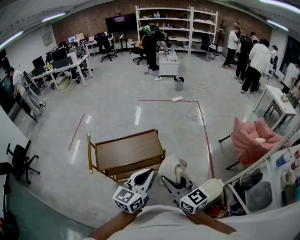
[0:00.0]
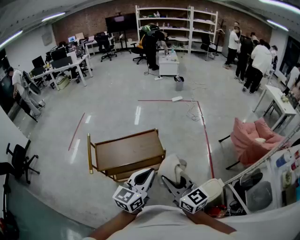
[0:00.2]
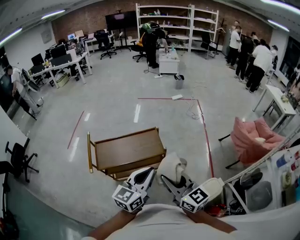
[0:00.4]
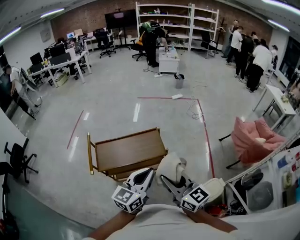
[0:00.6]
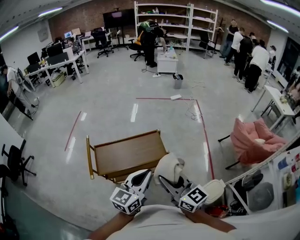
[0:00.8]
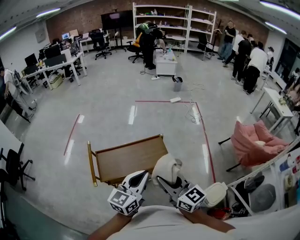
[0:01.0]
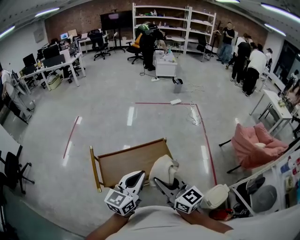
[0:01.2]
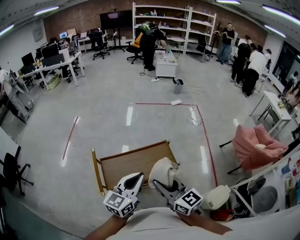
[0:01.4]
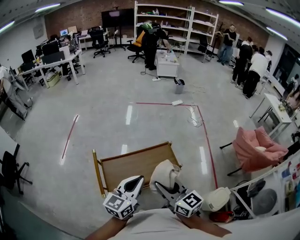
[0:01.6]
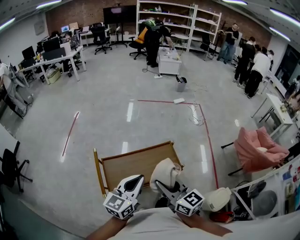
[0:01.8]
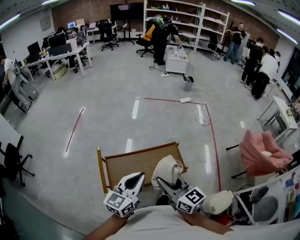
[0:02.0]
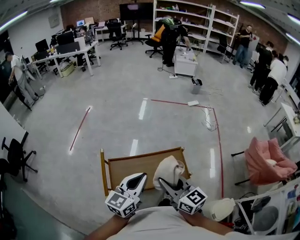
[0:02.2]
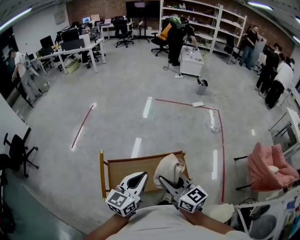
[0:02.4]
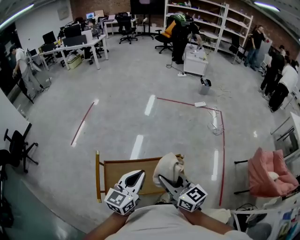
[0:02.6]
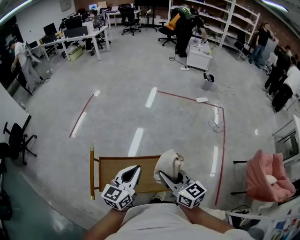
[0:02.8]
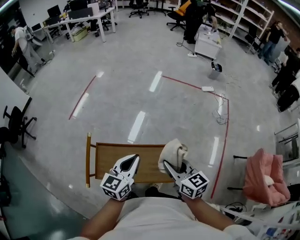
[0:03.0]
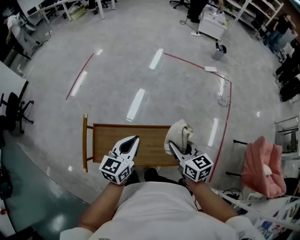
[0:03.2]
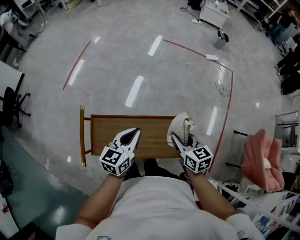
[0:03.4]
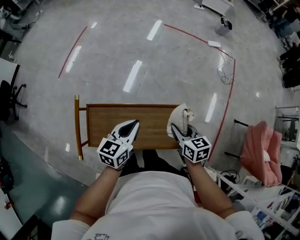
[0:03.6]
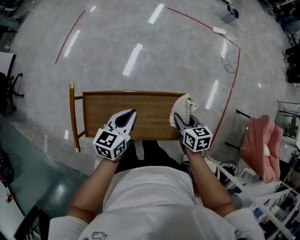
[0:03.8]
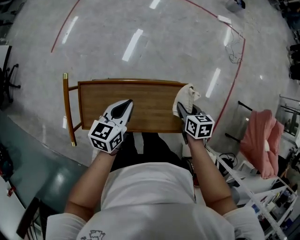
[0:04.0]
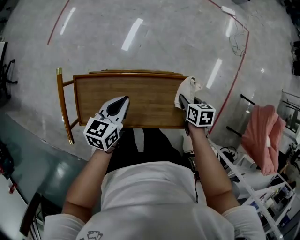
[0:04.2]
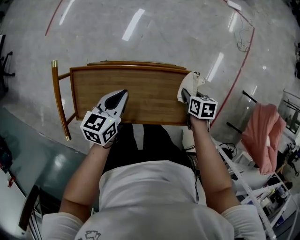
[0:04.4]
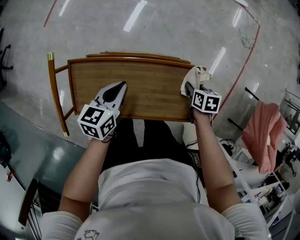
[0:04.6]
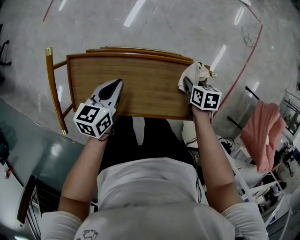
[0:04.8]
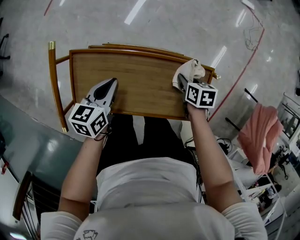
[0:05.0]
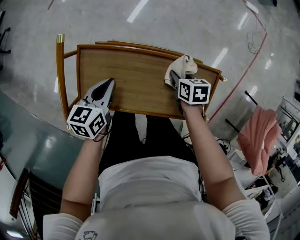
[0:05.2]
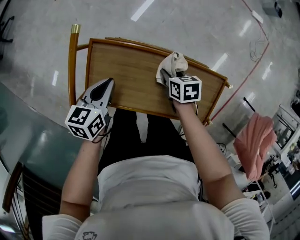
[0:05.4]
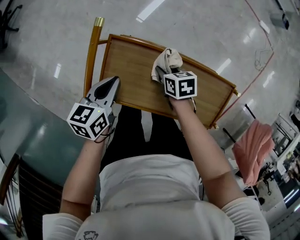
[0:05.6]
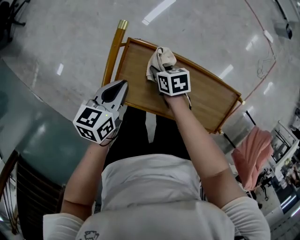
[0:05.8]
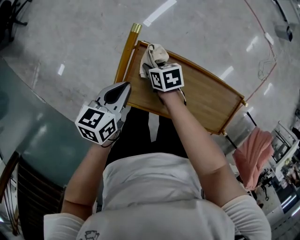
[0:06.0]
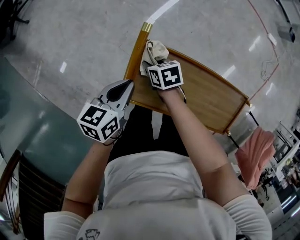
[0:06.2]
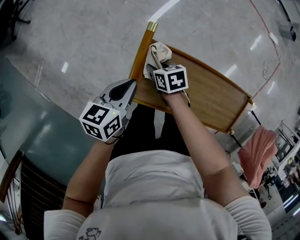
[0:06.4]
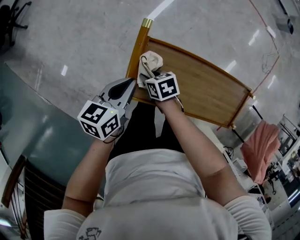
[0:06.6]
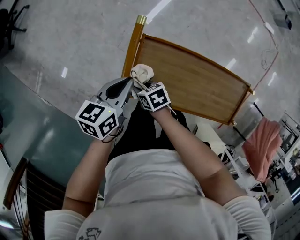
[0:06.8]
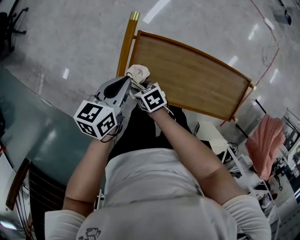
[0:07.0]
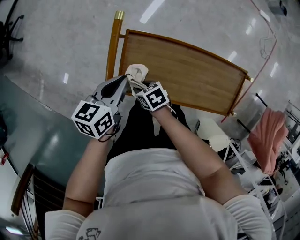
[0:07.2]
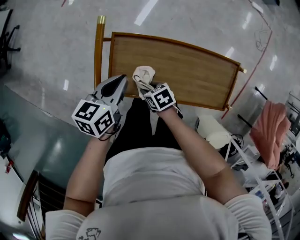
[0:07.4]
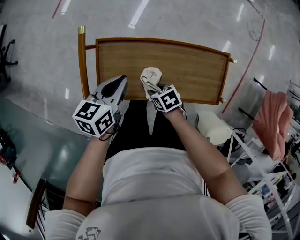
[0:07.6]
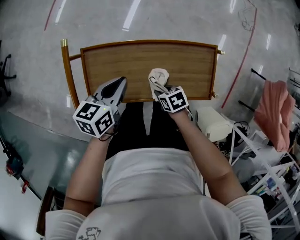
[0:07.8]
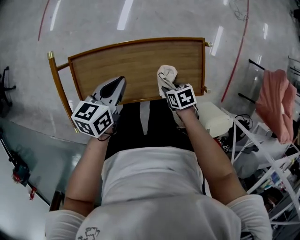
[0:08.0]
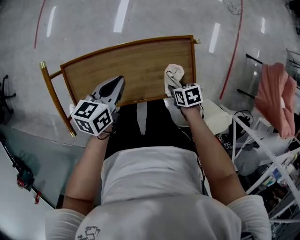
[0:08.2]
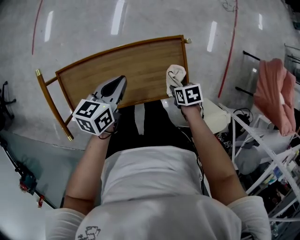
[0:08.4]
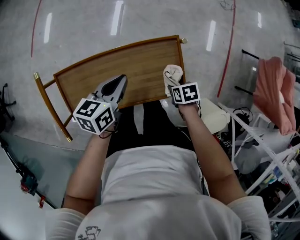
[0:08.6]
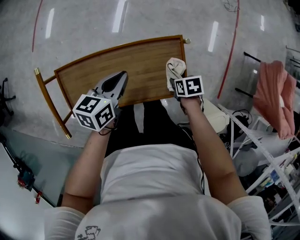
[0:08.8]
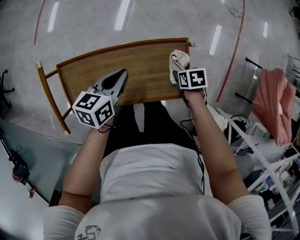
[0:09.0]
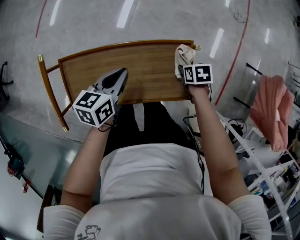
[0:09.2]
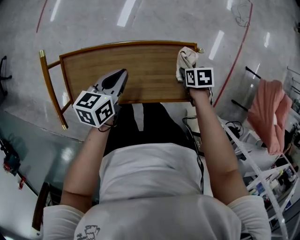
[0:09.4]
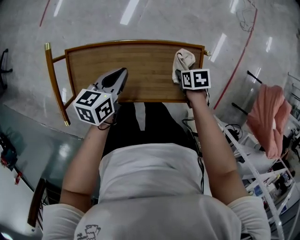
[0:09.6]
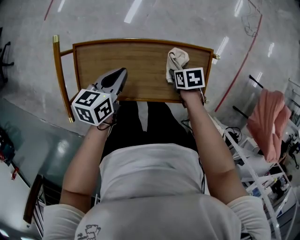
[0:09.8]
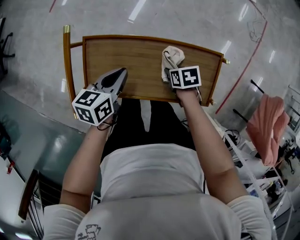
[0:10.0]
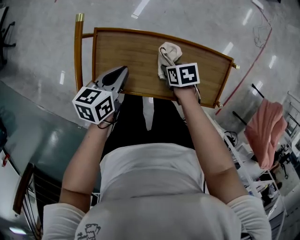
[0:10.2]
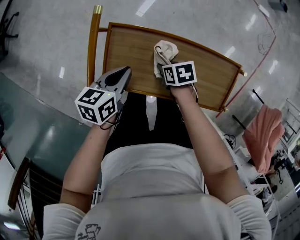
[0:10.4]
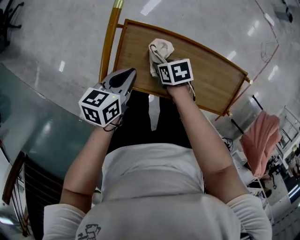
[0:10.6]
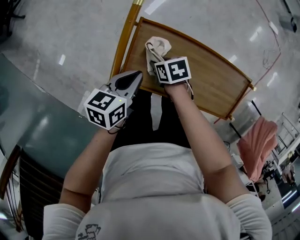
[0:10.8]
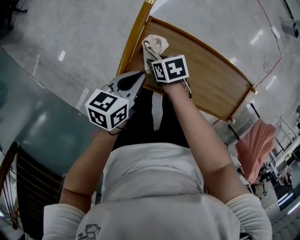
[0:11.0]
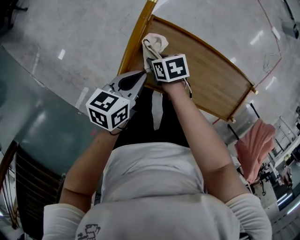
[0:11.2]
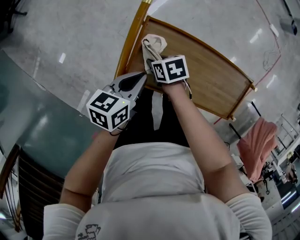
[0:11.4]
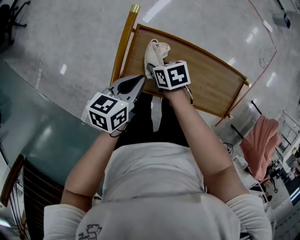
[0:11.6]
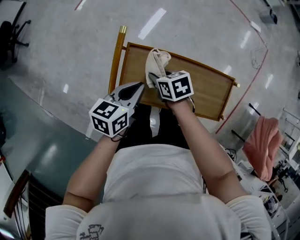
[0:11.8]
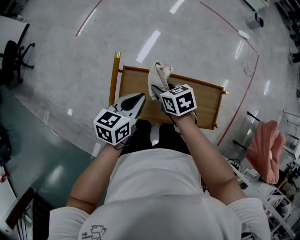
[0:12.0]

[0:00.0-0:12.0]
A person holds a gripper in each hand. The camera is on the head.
0.0 to 1.6 s: Both grippers travel together to the left and forward, some 30 cm.
1.6 to 3.0 s: The left gripper is displaced forward by some 25 cm, and swivels some 20 degrees; the right gripper heads forward and to the right, covering some 30 cm.
3.0 to 4.4 s: Both grippers move downward, some 30 cm. The right gripper tips its fingers downward by roughly 50 degrees; the left gripper turns by about 30 degrees.
4.4 to 6.0 s: The right gripper ends up roughly 50 cm from where it was, and changes its angle by roughly 40 degrees; the left gripper moves roughly 30 cm.
6.0 to 7.6 s: The left gripper shifts by about 15 cm, while the right gripper ends up roughly 25 cm from where it was.
7.6 to 9.0 s: The left gripper moves some 25 cm; the right gripper shifts by some 35 cm, and turns by some 30 degrees.
9.0 to 10.4 s: The right gripper changes place by roughly 35 cm, and changes its angle by approximately 20 degrees. The left gripper changes place by about 25 cm.
10.4 to 12.0 s: Both grippers move upward, about 20 cm. The right gripper turns by roughly 20 degrees.

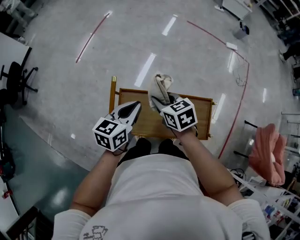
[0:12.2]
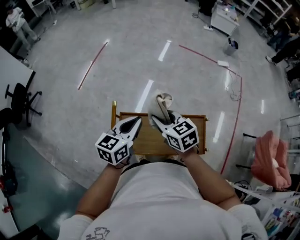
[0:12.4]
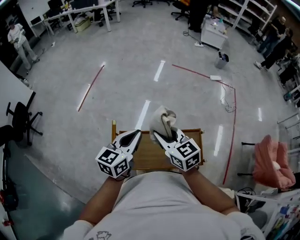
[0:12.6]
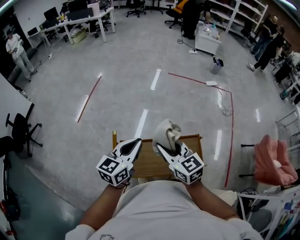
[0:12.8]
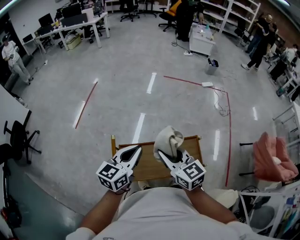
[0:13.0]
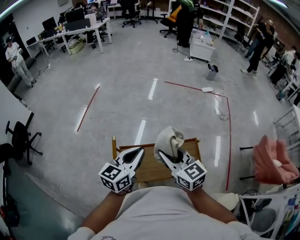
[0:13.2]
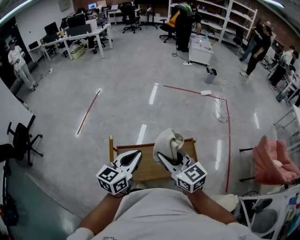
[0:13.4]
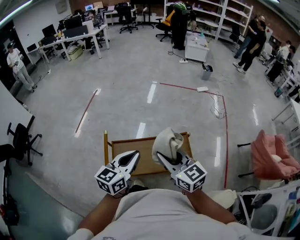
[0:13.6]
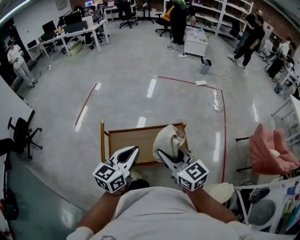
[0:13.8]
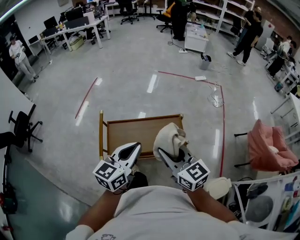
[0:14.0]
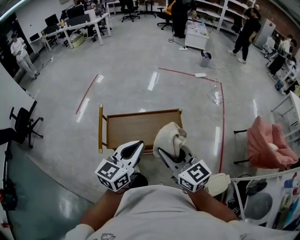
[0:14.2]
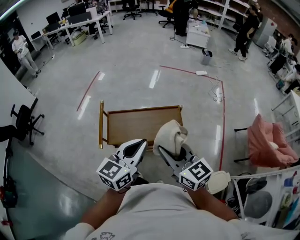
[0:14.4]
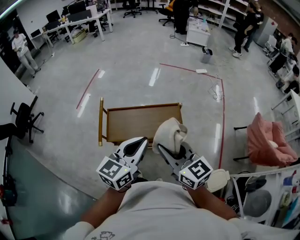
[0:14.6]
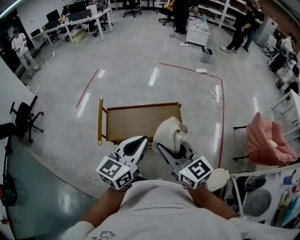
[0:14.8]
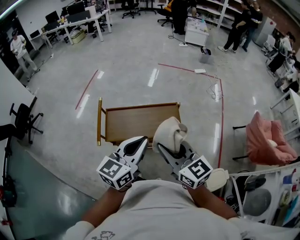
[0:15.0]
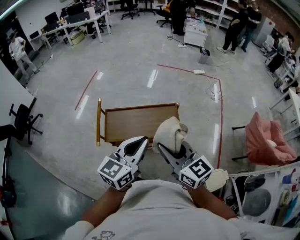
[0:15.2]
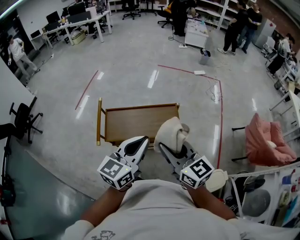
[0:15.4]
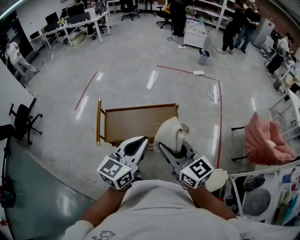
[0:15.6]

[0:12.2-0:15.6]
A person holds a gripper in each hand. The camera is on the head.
12.2 to 13.8 s: The two grippers go approximately 30 cm backward, upward and to the right. The right gripper angles its fingers upward, by approximately 30 degrees; the left gripper swivels some 20 degrees.
13.8 to 15.6 s: The left gripper travels backward and to the right by approximately 15 cm; the right gripper moves backward, approximately 15 cm.

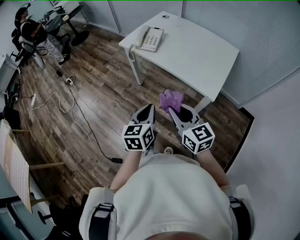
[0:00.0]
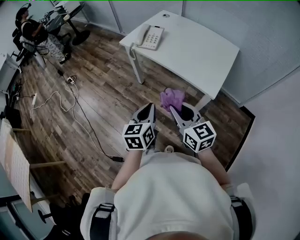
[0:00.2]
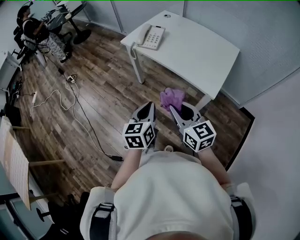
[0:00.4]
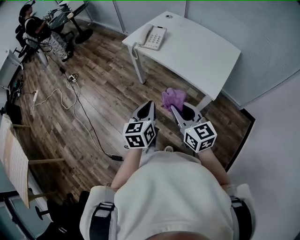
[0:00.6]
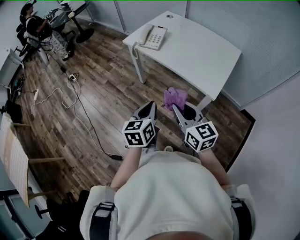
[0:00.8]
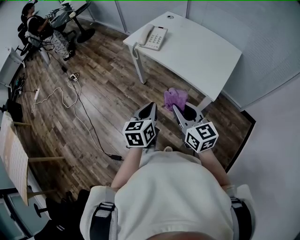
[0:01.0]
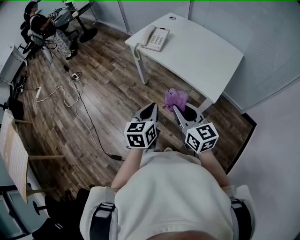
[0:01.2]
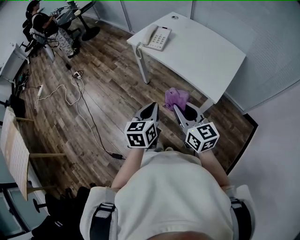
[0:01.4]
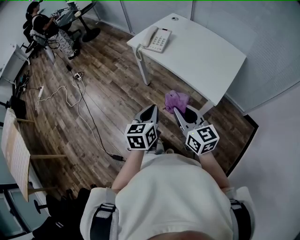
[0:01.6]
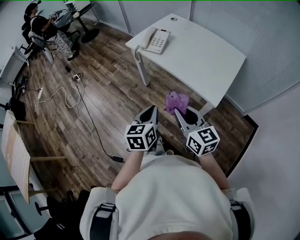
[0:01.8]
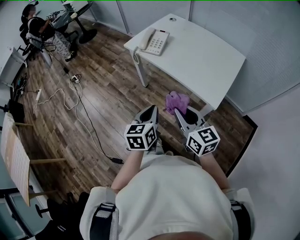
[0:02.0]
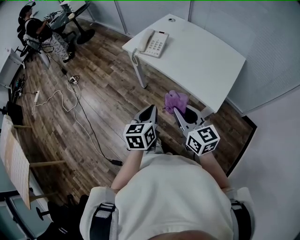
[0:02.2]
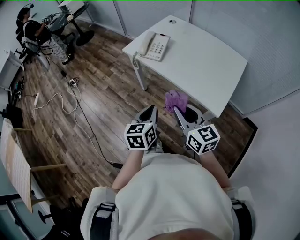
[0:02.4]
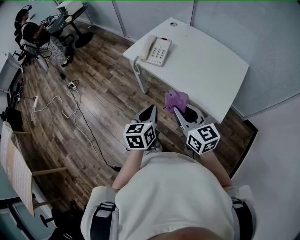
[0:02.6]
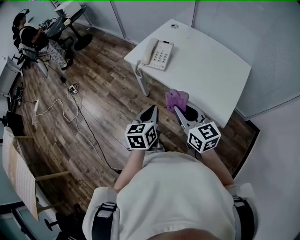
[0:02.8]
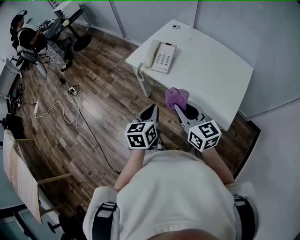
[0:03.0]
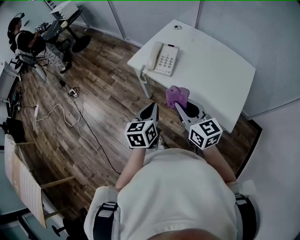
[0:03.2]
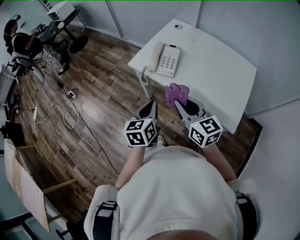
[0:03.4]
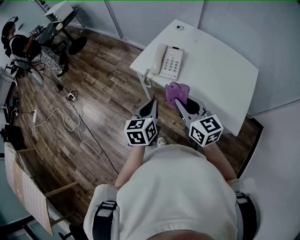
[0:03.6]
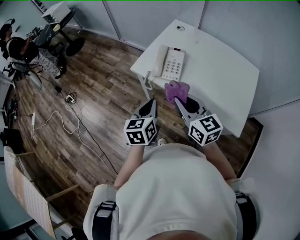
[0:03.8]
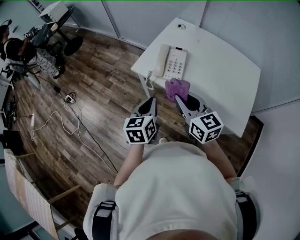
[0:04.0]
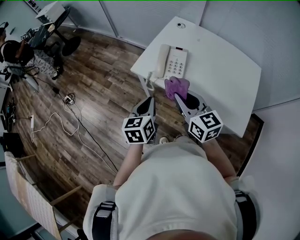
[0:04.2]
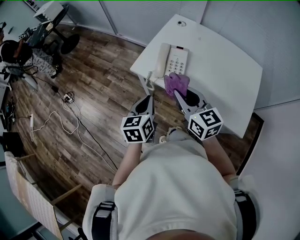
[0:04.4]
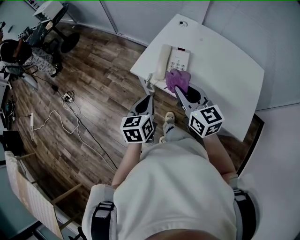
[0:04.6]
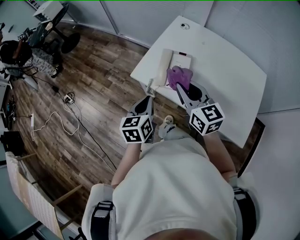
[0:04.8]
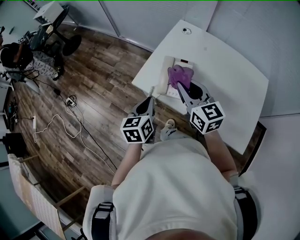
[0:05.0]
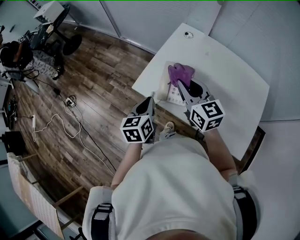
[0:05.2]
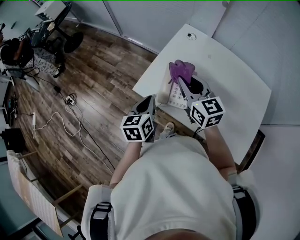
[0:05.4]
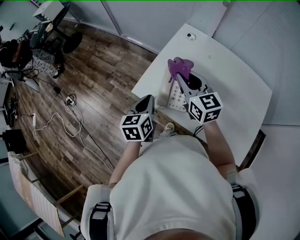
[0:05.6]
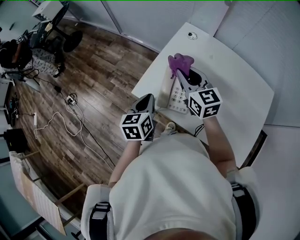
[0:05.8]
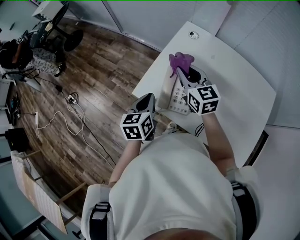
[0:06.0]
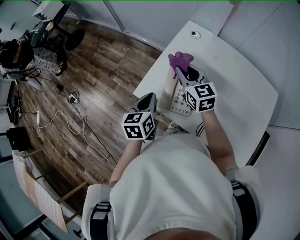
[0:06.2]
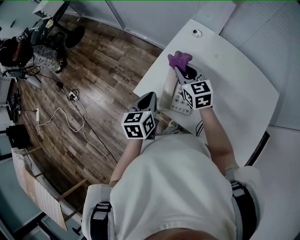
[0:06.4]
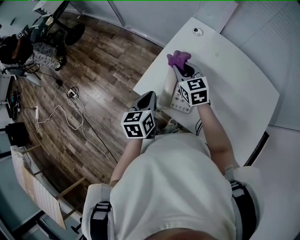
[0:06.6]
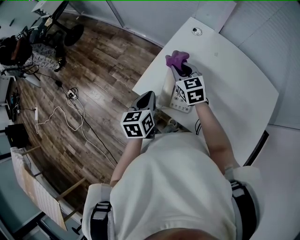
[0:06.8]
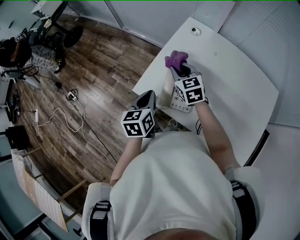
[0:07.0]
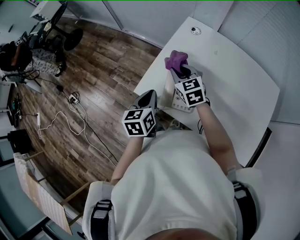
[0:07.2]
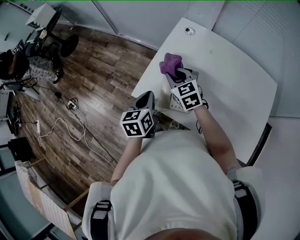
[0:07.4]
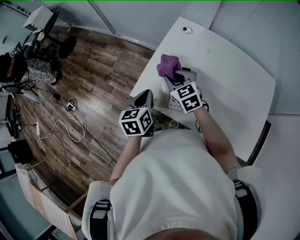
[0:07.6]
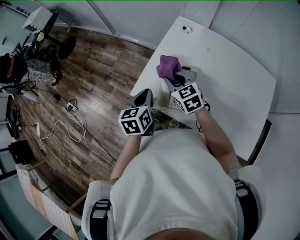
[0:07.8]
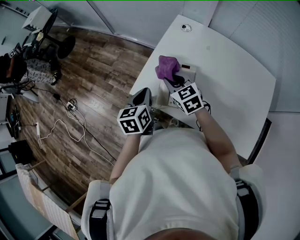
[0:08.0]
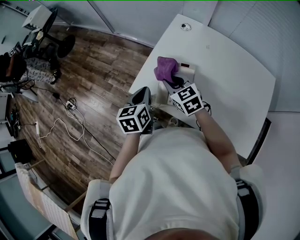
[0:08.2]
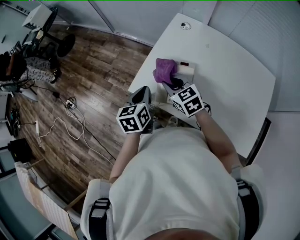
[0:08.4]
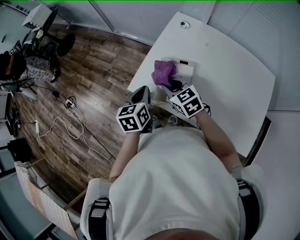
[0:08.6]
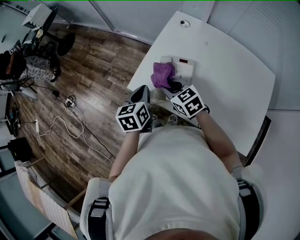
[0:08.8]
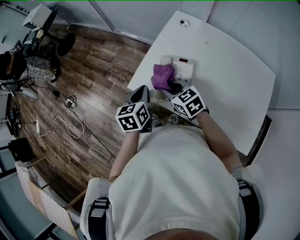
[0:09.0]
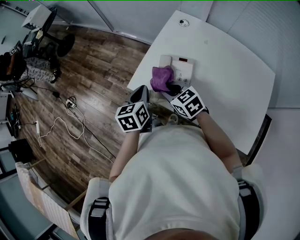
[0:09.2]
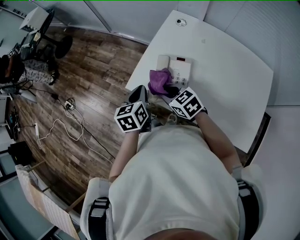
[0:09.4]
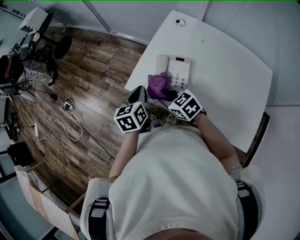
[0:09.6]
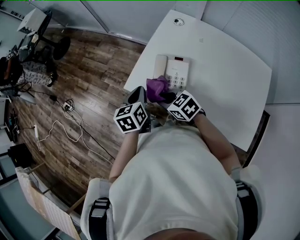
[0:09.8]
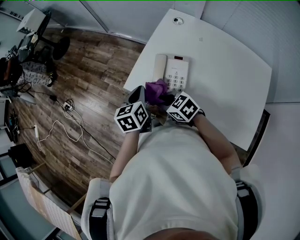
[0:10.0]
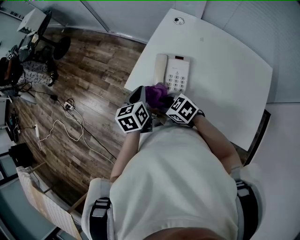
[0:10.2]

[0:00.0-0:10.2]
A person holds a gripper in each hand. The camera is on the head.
0.0 to 1.4 s: The grippers move only a little.
1.4 to 3.0 s: The two grippers go roughly 20 cm forward.
3.0 to 4.4 s: The grippers both shift forward and to the left by some 20 cm.
4.4 to 5.8 s: Both grippers travel together forward, roughly 20 cm.
5.8 to 7.2 s: The right gripper travels downward by some 10 cm.
7.2 to 8.8 s: The right gripper goes roughly 10 cm backward.
8.8 to 10.2 s: The right gripper shifts about 10 cm backward and to the left, and turns by roughly 20 degrees.
